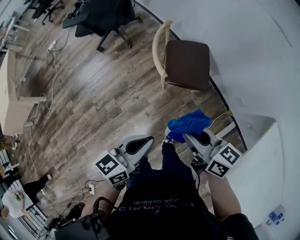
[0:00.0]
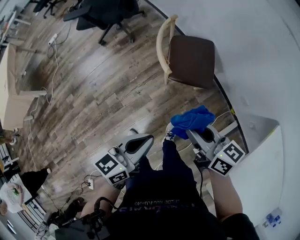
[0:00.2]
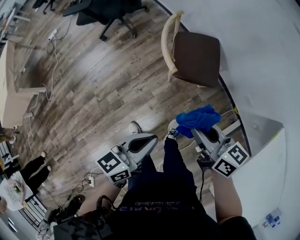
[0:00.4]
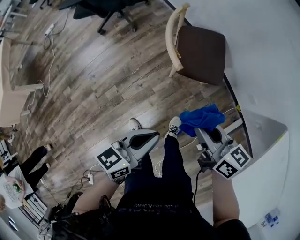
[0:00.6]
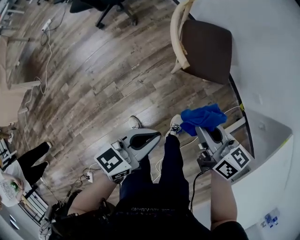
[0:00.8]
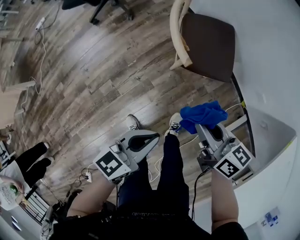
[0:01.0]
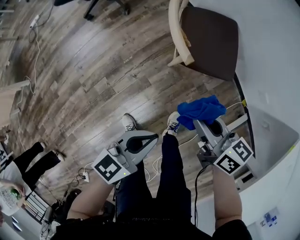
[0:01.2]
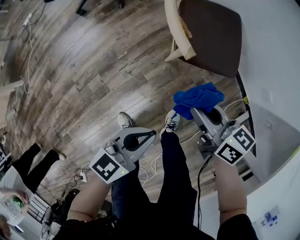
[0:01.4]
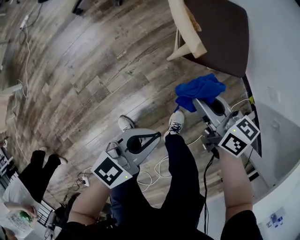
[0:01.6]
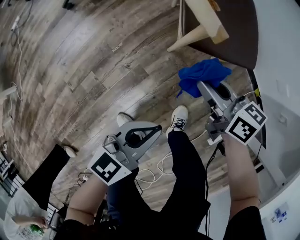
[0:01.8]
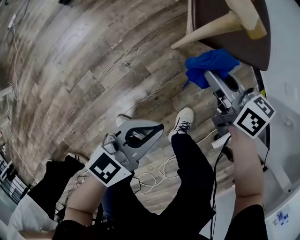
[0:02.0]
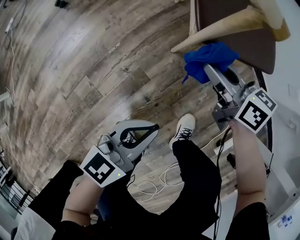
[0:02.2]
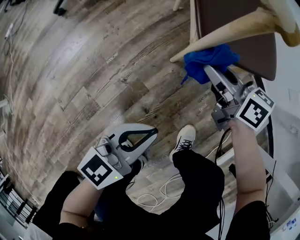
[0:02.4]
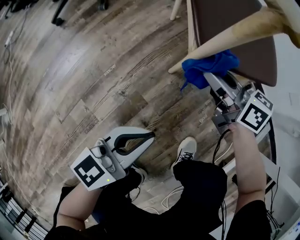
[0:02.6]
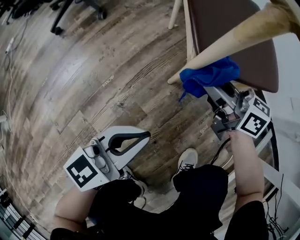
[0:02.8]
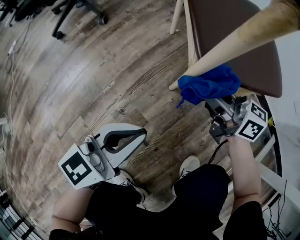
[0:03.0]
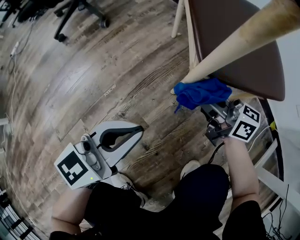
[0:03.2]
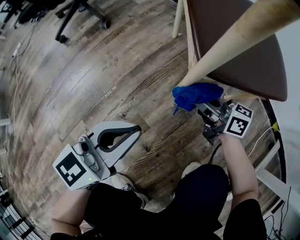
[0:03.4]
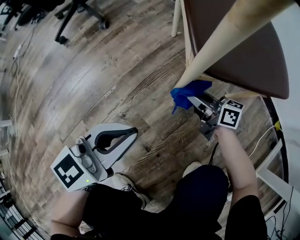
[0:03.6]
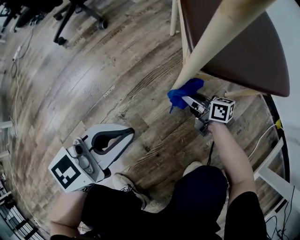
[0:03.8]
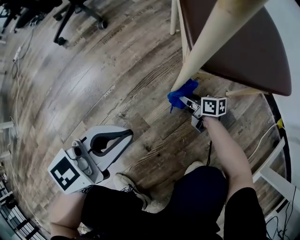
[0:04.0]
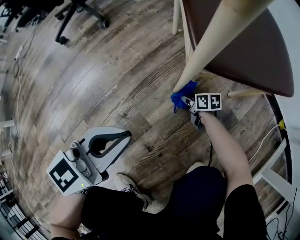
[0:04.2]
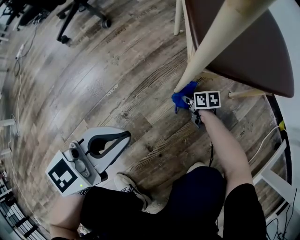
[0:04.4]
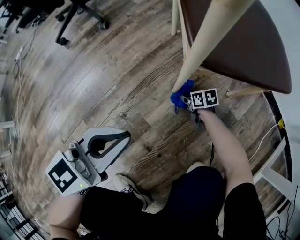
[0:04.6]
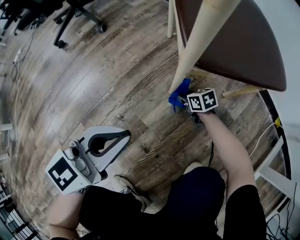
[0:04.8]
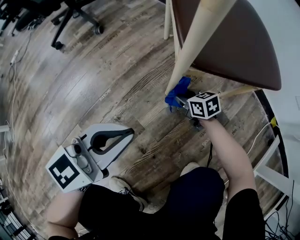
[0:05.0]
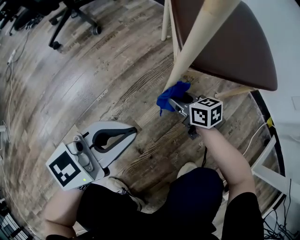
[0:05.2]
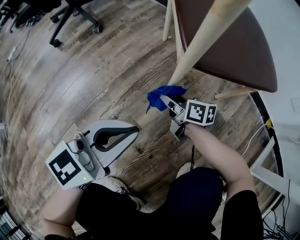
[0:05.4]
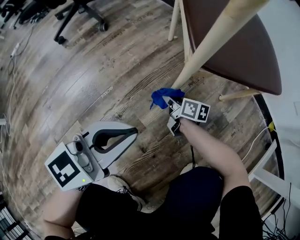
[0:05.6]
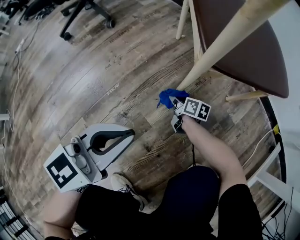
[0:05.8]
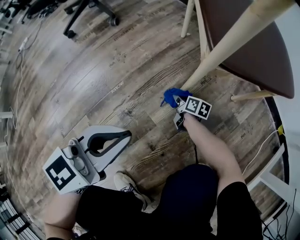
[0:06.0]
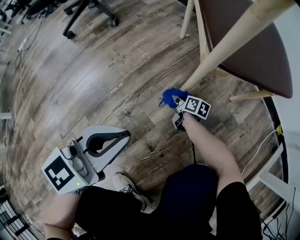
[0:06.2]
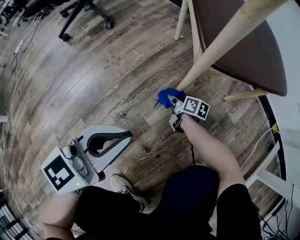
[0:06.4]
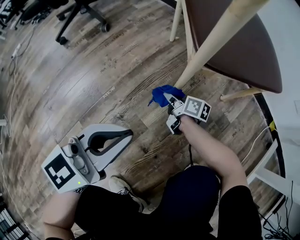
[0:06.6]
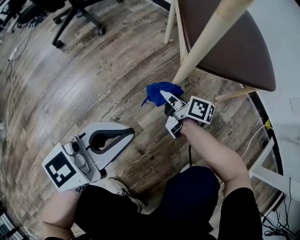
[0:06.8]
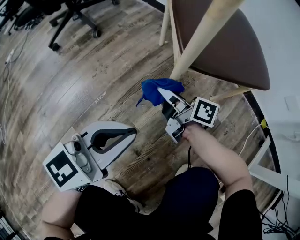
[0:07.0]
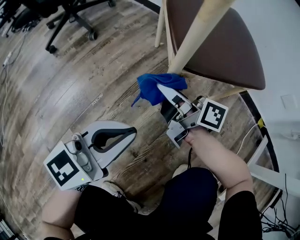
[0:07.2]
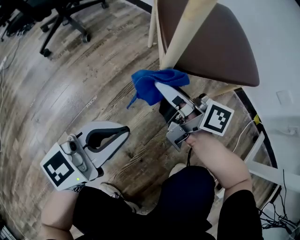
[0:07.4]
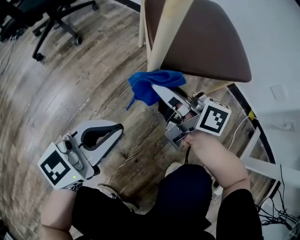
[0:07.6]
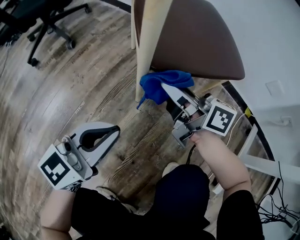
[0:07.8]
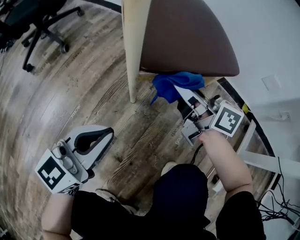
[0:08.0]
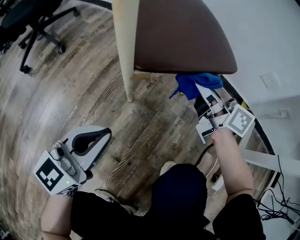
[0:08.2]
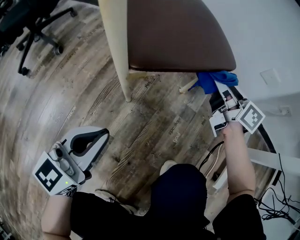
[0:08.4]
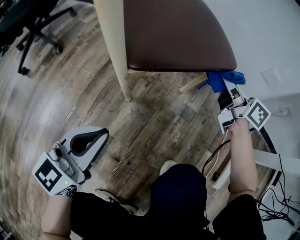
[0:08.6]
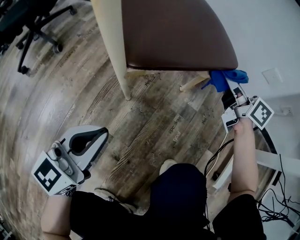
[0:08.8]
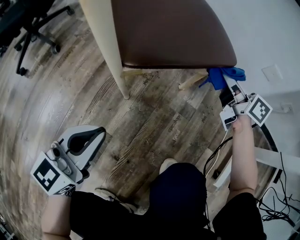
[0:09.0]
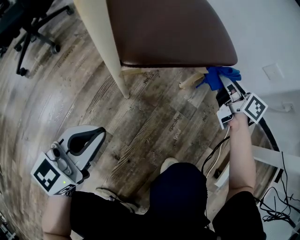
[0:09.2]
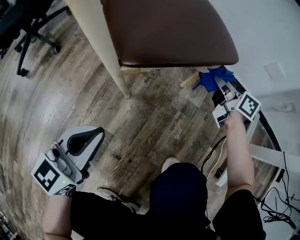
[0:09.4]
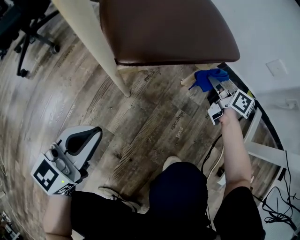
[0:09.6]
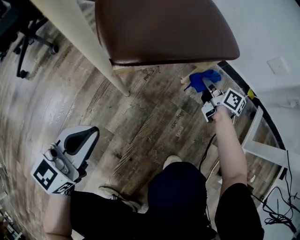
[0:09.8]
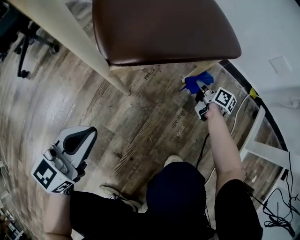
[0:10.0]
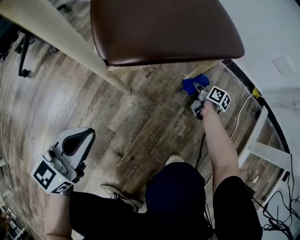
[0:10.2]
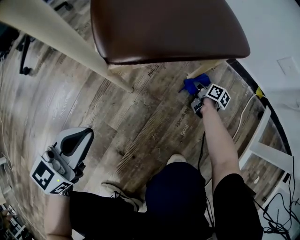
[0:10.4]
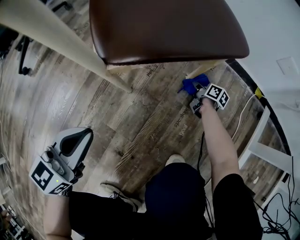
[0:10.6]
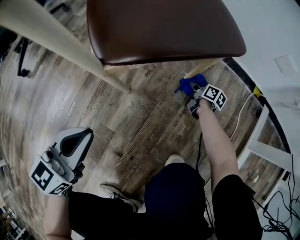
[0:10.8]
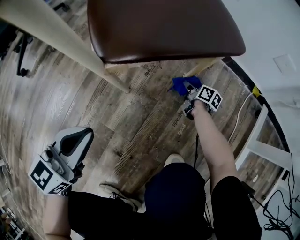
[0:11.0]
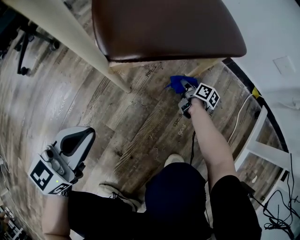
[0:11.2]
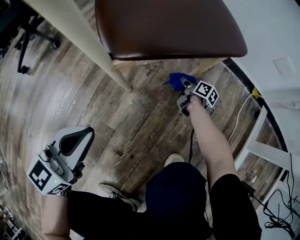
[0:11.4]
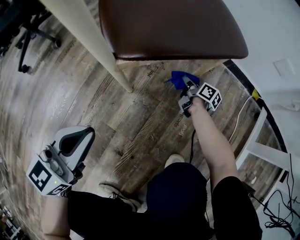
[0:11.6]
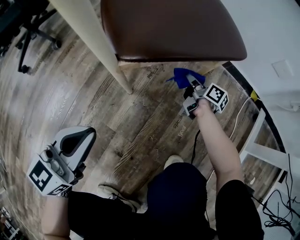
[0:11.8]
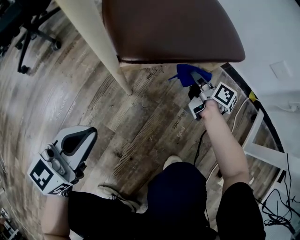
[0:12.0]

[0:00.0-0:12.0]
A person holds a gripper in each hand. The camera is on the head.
0:00.0 to 0:01.6: Both grippers move downward, about 30 cm.
0:01.6 to 0:03.0: Both grippers travel together downward and forward, approximately 25 cm. The right gripper swivels some 20 degrees.
0:03.0 to 0:04.4: The right gripper travels downward by roughly 35 cm, and points its fingers some 40 degrees further downward.
0:04.4 to 0:06.0: The right gripper is displaced to the left by approximately 5 cm, reaches approximately 20 cm upward, then returns, and turns by about 30 degrees.
0:06.0 to 0:07.6: The right gripper travels upward by some 40 cm, and tips its fingers upward by roughly 40 degrees, while the left gripper moves to the right, some 5 cm.
0:07.6 to 0:09.0: The right gripper moves to the right, about 30 cm, and changes its angle by roughly 40 degrees.
0:09.0 to 0:10.4: The right gripper travels downward by roughly 35 cm, and swivels some 40 degrees.
0:10.4 to 0:12.0: The right gripper moves upward and to the left, roughly 20 cm.

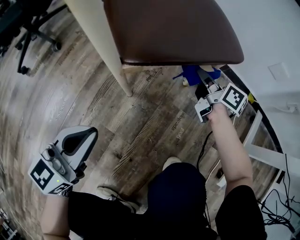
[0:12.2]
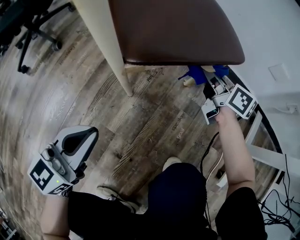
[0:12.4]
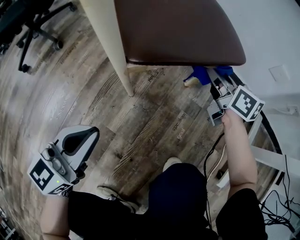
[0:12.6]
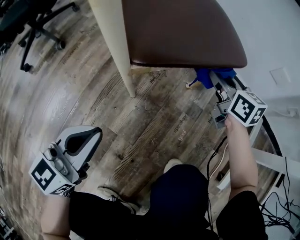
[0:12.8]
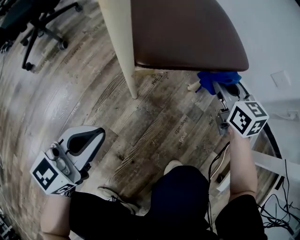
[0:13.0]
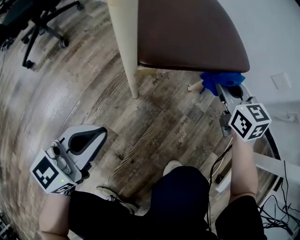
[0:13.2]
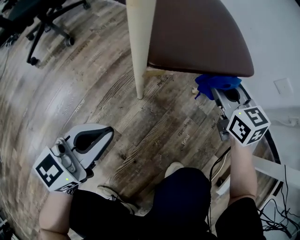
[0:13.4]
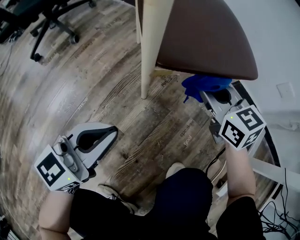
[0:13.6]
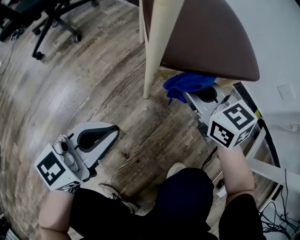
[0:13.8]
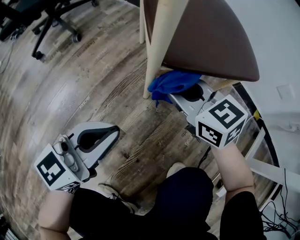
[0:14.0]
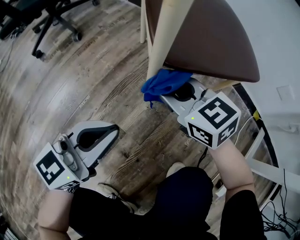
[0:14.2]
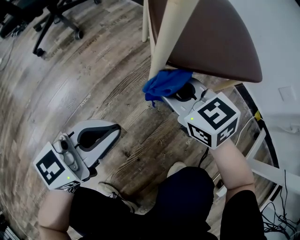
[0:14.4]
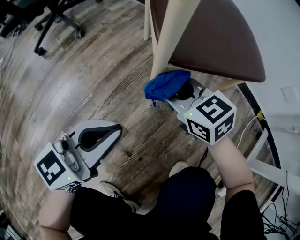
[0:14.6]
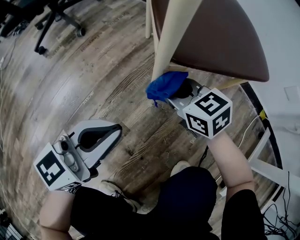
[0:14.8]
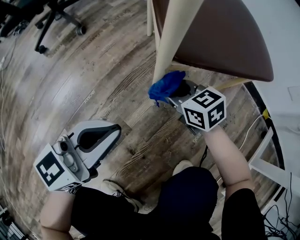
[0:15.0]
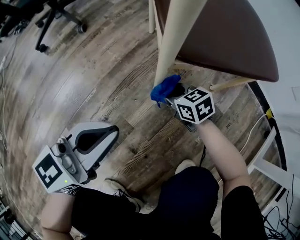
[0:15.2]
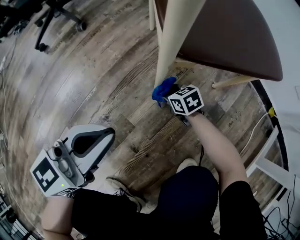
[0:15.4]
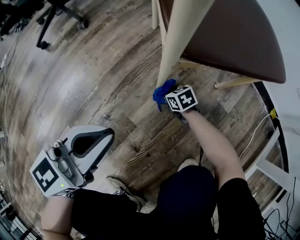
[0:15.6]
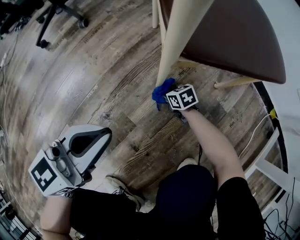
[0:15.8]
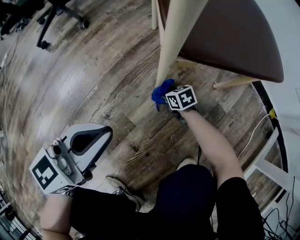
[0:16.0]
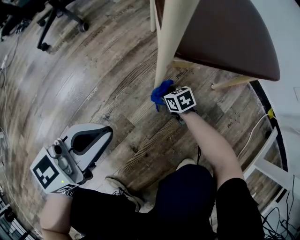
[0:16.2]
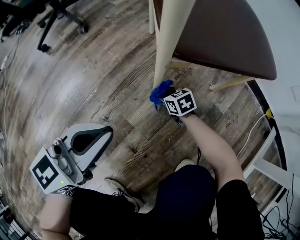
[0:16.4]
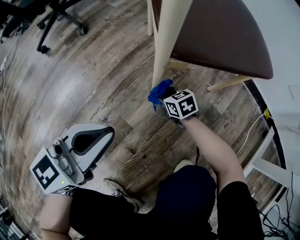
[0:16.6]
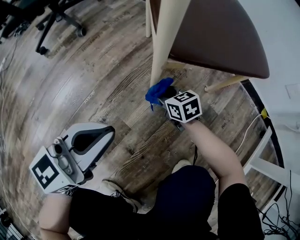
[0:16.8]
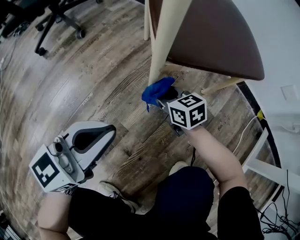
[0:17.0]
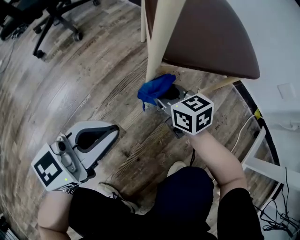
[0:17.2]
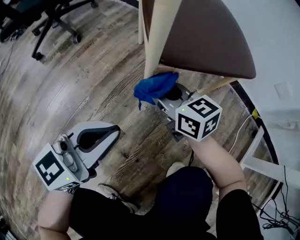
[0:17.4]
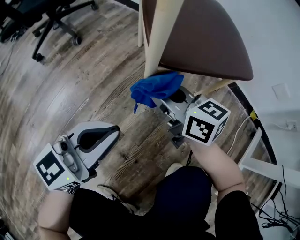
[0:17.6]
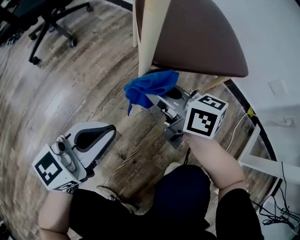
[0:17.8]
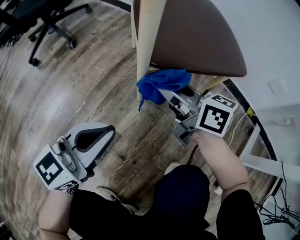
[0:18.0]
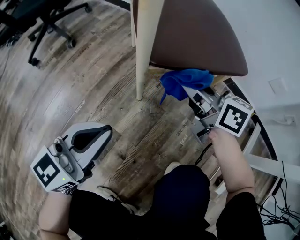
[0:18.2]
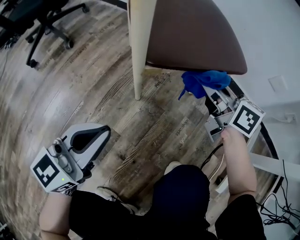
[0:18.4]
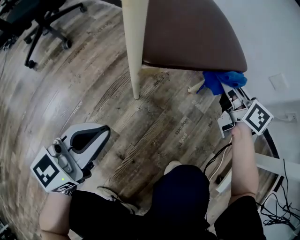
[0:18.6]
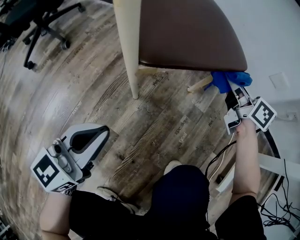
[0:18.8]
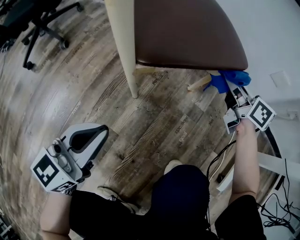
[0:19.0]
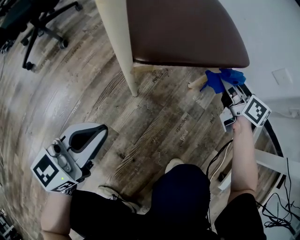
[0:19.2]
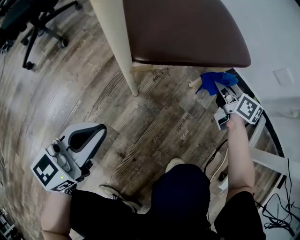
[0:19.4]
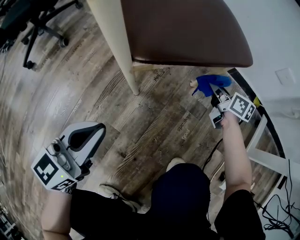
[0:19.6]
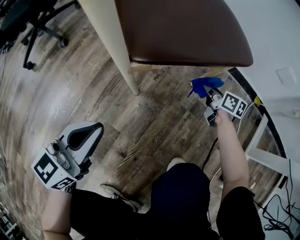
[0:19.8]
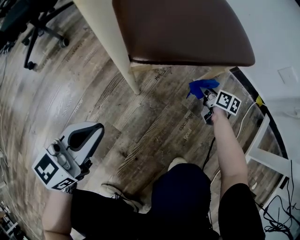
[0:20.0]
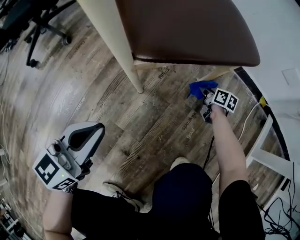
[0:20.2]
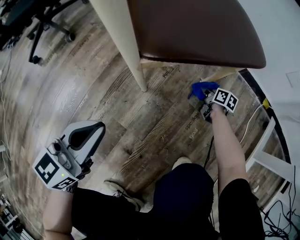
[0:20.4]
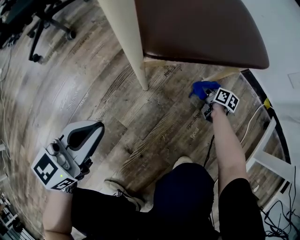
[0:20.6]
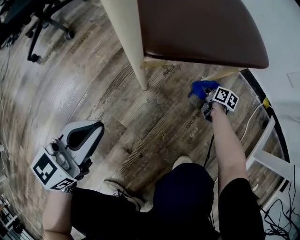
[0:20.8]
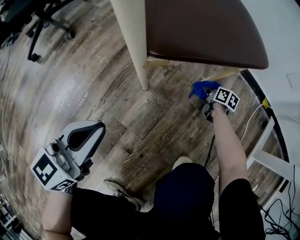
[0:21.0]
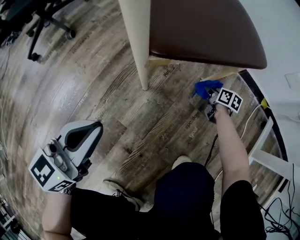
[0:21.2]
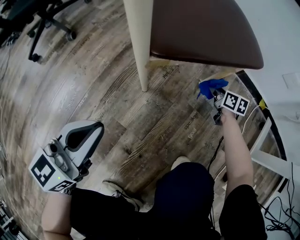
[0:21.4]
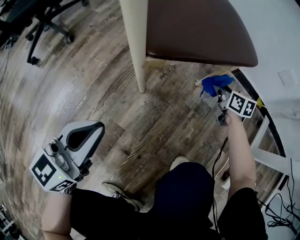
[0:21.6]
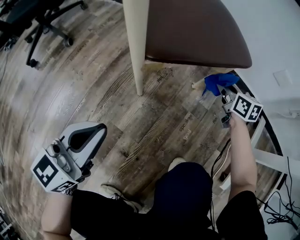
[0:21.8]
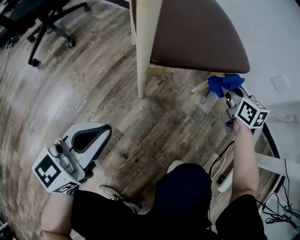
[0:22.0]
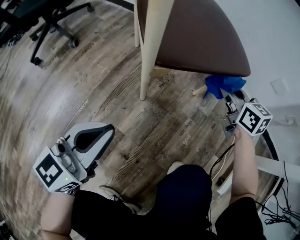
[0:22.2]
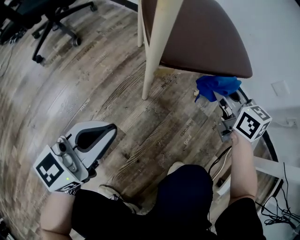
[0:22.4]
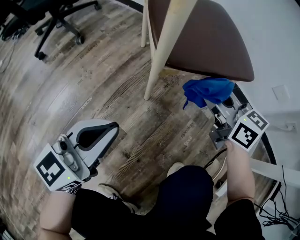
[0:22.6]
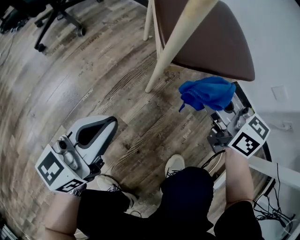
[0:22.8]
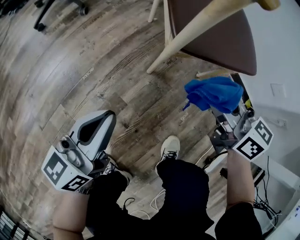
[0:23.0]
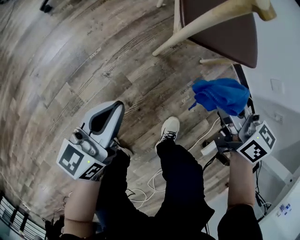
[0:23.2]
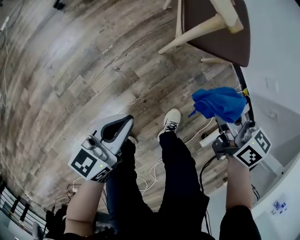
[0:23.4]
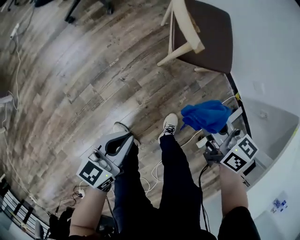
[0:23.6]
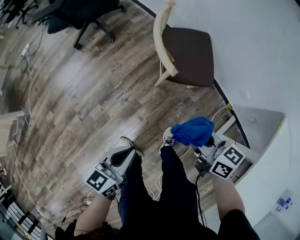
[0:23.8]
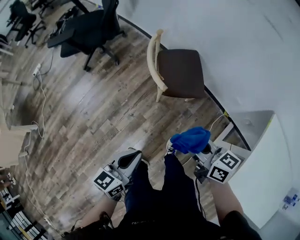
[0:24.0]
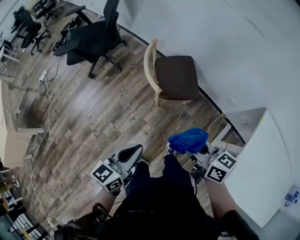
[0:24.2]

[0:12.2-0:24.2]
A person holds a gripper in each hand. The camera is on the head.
0:12.2 to 0:13.8: The right gripper is displaced to the left, backward and upward by about 20 cm, and twists some 50 degrees counterclockwise, seen from behind.
0:13.8 to 0:15.2: The right gripper shifts about 20 cm downward, and turns by approximately 20 degrees.
0:15.2 to 0:16.6: The right gripper travels downward by about 5 cm.
0:16.6 to 0:18.2: The right gripper goes about 30 cm upward, and points its fingers some 30 degrees further upward.
0:18.2 to 0:19.8: The right gripper heads downward and to the right, covering some 30 cm, and changes its angle by about 30 degrees; the left gripper changes place by approximately 5 cm.
0:19.8 to 0:21.2: The right gripper goes approximately 10 cm downward.
0:21.2 to 0:22.6: The left gripper shifts by some 5 cm, while the right gripper heads upward and to the left, covering roughly 35 cm, and swivels roughly 50 degrees.
0:22.6 to 0:24.2: The grippers both shift upward by roughly 60 cm. The left gripper turns by approximately 20 degrees, while the right gripper changes its angle by some 20 degrees.
